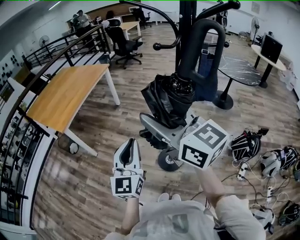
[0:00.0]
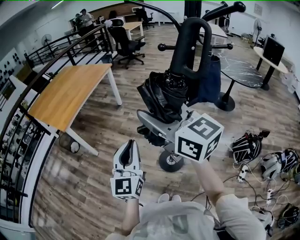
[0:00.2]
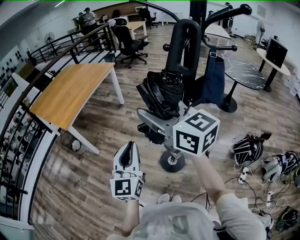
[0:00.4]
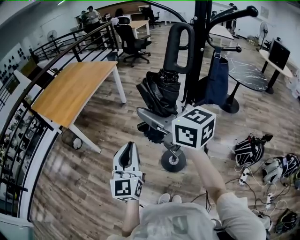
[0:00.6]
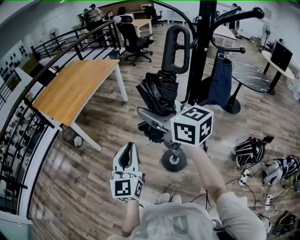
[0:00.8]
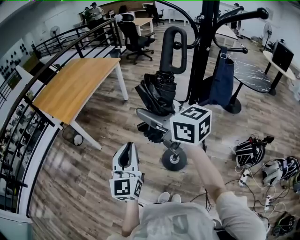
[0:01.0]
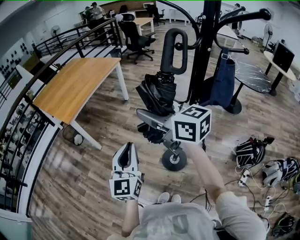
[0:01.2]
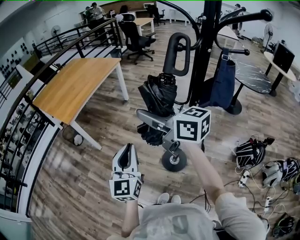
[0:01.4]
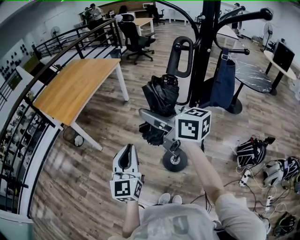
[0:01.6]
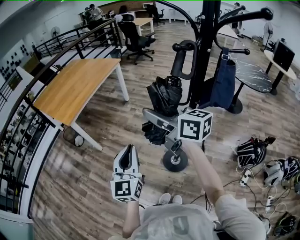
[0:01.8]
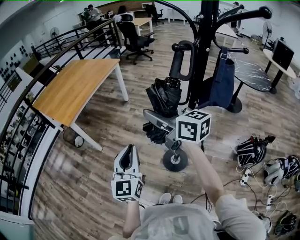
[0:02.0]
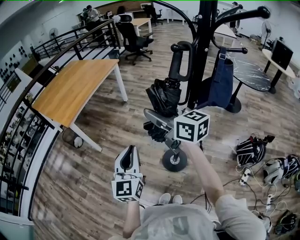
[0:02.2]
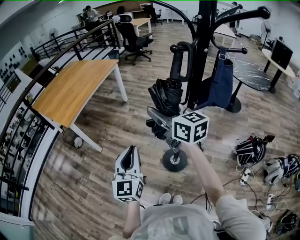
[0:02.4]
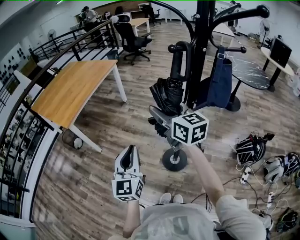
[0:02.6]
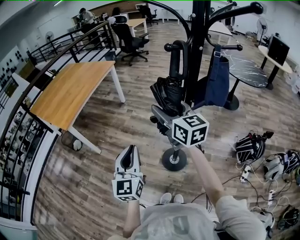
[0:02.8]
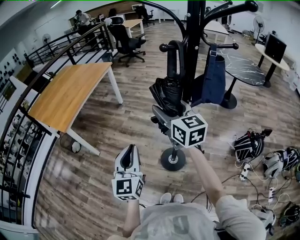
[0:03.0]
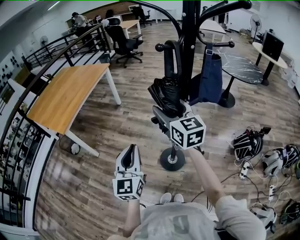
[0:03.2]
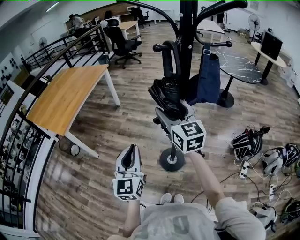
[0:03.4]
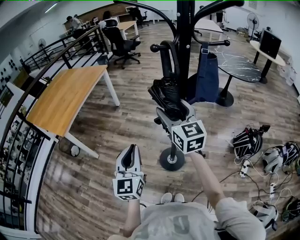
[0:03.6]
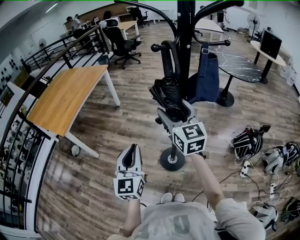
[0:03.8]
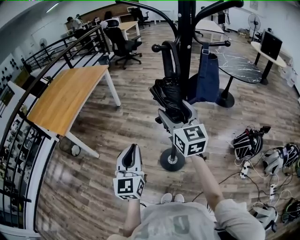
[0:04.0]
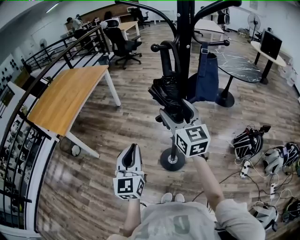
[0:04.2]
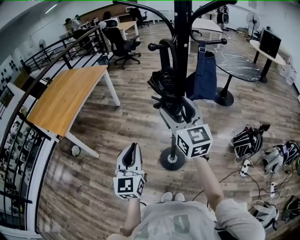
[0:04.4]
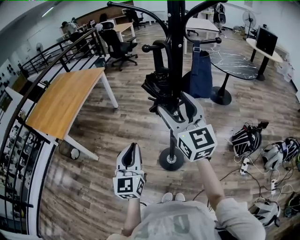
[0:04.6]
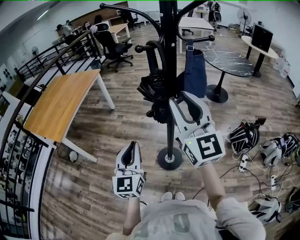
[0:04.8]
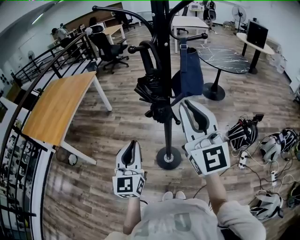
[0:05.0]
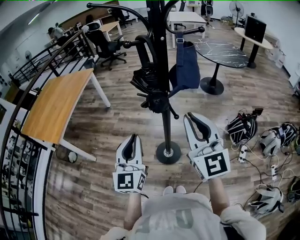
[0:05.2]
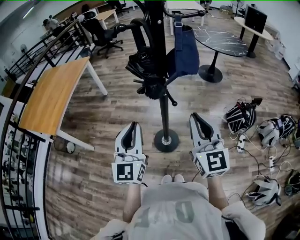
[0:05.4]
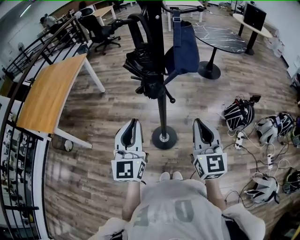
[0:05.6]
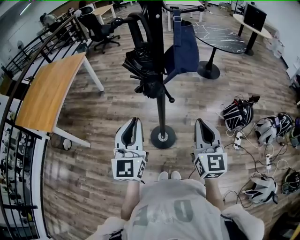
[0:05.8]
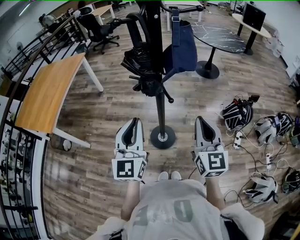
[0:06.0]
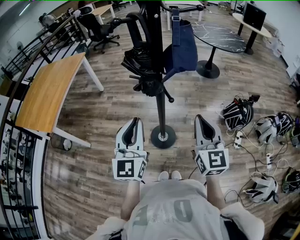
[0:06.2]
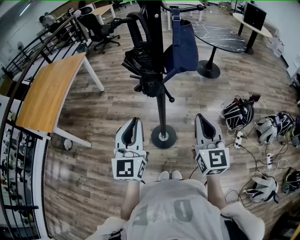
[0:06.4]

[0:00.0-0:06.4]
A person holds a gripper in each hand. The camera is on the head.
0:00.0 to 0:01.6: The left gripper ends up some 5 cm from where it was, while the right gripper travels forward and downward by roughly 10 cm, and turns by about 20 degrees.
0:01.6 to 0:03.2: The right gripper heads to the right, covering approximately 10 cm, and rotates roughly 40 degrees.
0:03.2 to 0:04.8: The right gripper heads upward, backward and to the right, covering approximately 15 cm, rotates roughly 30 degrees, and closes its fingers.
0:04.8 to 0:06.4: The left gripper moves to the right, some 5 cm; the right gripper travels downward and to the right by approximately 20 cm, turns by some 30 degrees, and closes its fingers.

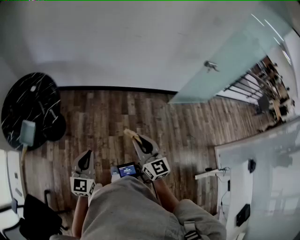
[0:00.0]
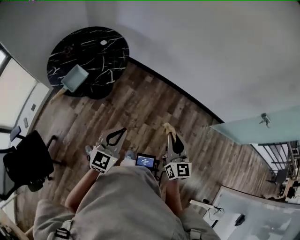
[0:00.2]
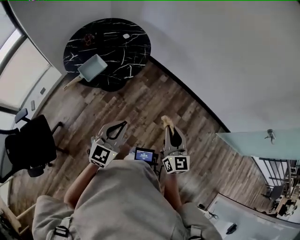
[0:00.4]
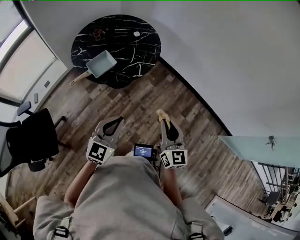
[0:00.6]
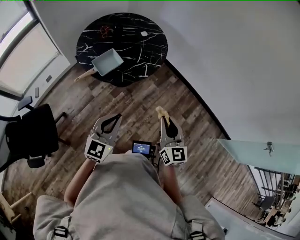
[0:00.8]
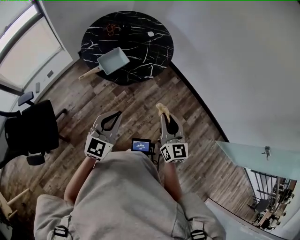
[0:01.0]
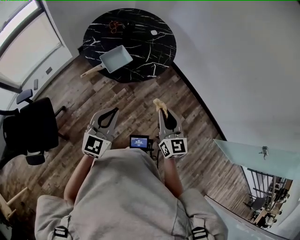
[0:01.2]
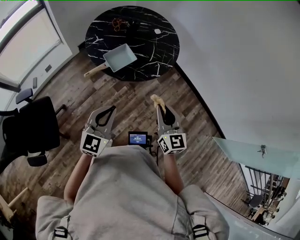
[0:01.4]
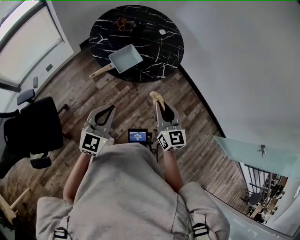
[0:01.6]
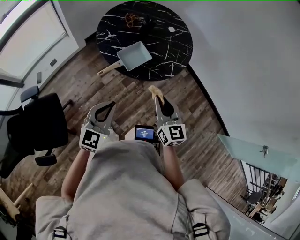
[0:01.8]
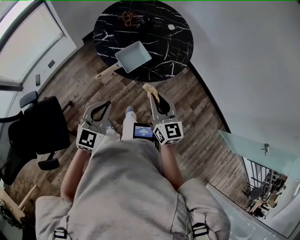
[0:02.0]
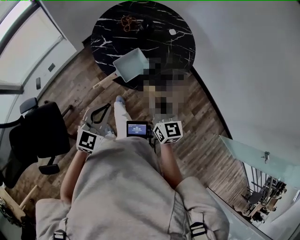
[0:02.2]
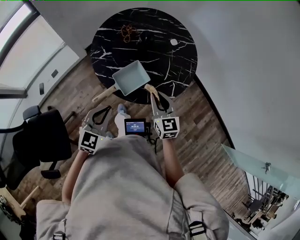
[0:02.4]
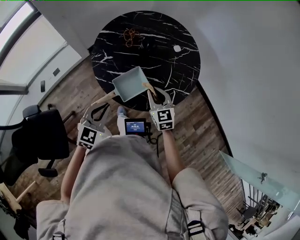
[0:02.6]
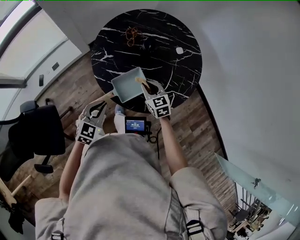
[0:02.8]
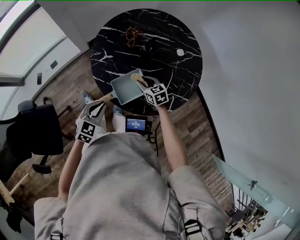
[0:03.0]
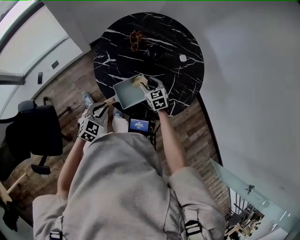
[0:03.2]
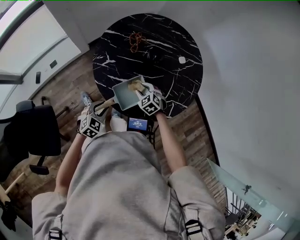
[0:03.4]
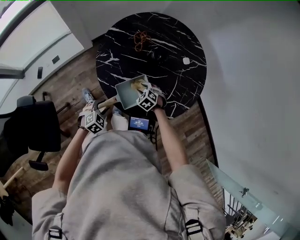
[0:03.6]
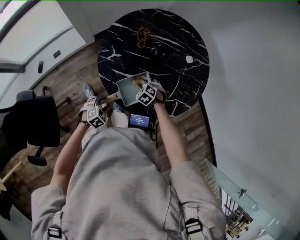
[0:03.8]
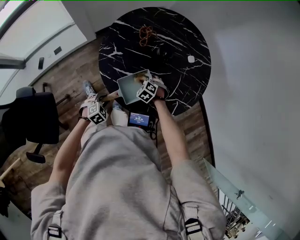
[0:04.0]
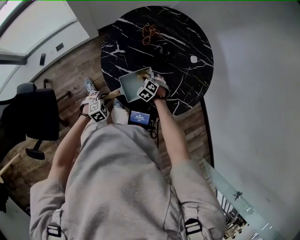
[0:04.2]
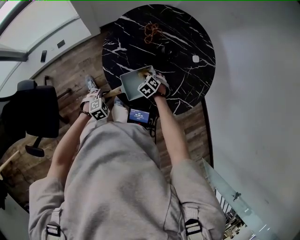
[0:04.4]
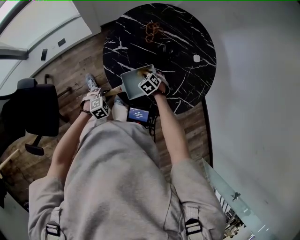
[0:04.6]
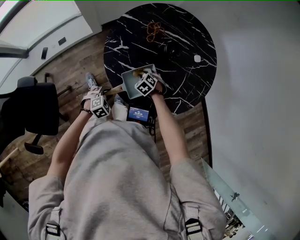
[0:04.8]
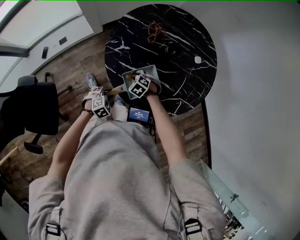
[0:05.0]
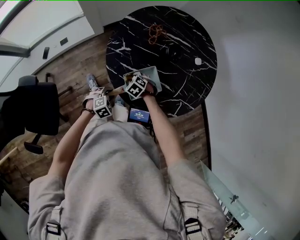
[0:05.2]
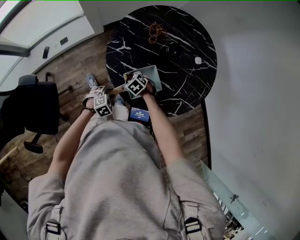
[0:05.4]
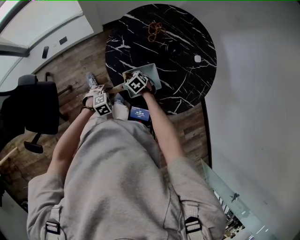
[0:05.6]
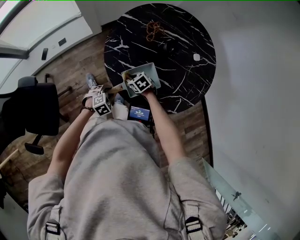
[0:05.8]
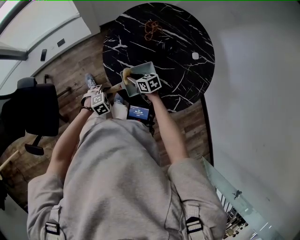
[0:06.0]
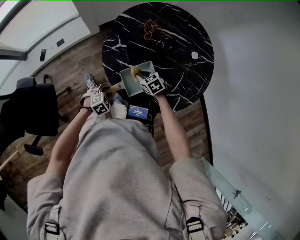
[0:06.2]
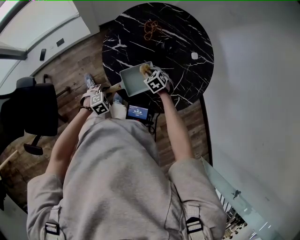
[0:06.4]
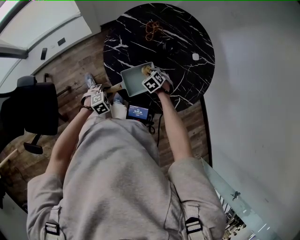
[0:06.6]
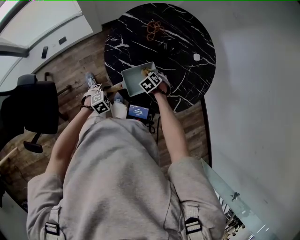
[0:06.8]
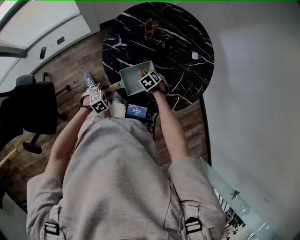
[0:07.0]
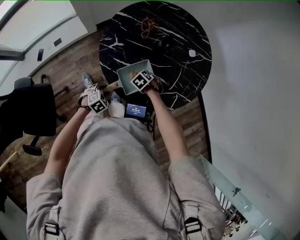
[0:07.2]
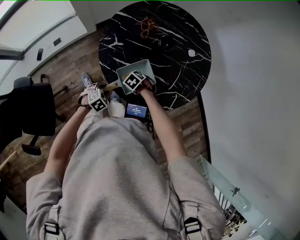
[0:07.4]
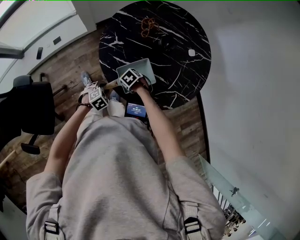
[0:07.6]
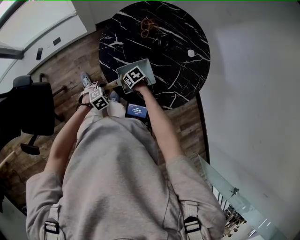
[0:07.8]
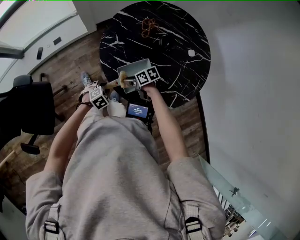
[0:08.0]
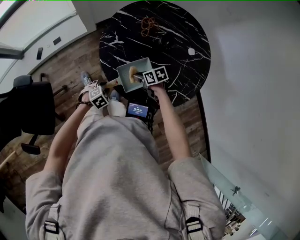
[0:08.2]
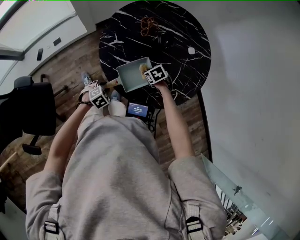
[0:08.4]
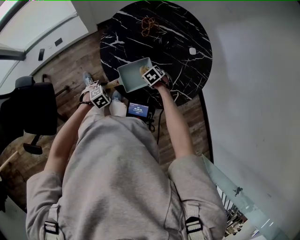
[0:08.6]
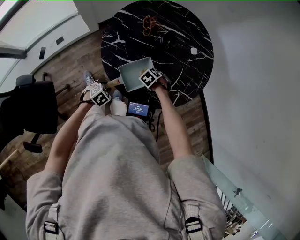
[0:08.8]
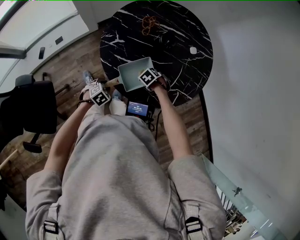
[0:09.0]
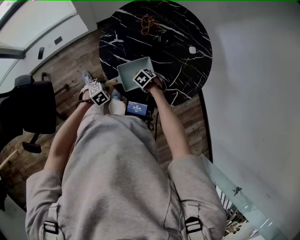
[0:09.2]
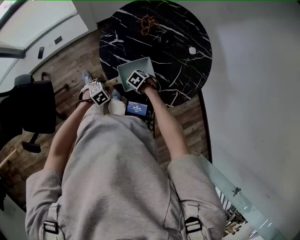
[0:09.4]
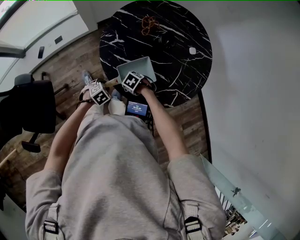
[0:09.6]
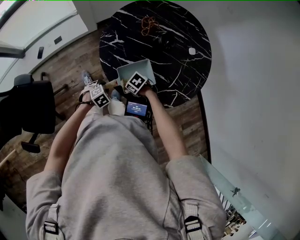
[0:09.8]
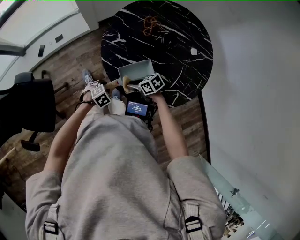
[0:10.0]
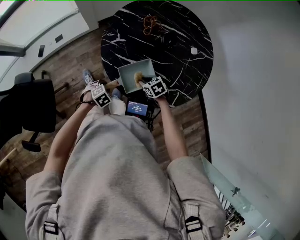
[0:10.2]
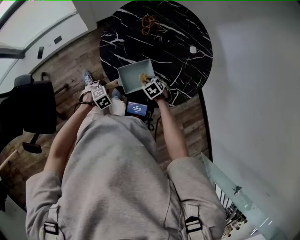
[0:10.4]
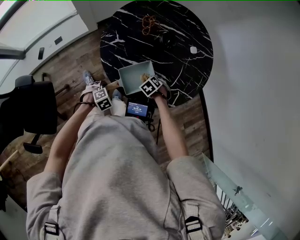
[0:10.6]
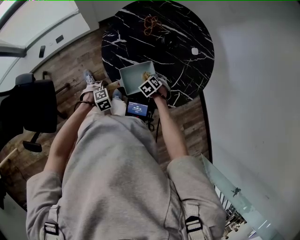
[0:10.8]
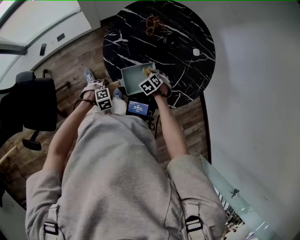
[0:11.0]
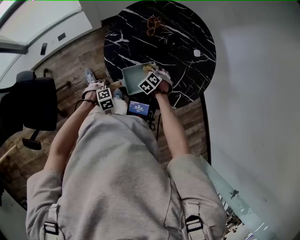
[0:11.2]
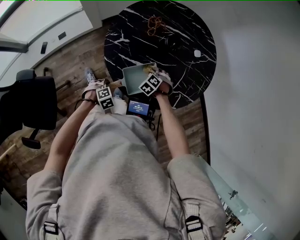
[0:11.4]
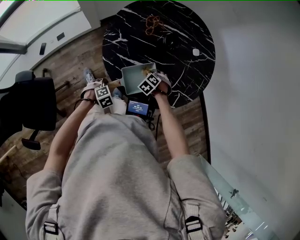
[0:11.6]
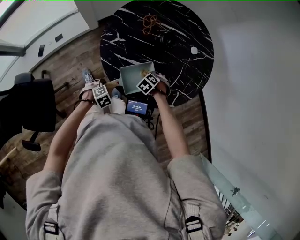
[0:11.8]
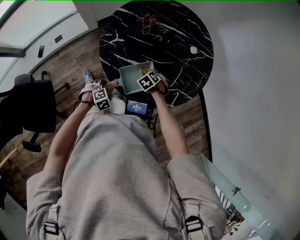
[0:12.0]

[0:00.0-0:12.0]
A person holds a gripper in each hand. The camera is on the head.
0:00.0 to 0:01.6: The two grippers travel together, to the left and forward, about 50 cm.
0:01.6 to 0:03.0: The right gripper is displaced forward and downward by about 50 cm, and rotates approximately 40 degrees. Meanwhile the left gripper is displaced forward and downward by some 30 cm, and swivels some 30 degrees.
0:03.0 to 0:04.4: The left gripper goes about 15 cm downward, changes its angle by approximately 30 degrees, and opens, while the right gripper moves downward, about 10 cm, swivels about 50 degrees, and opens, then closes once more.
0:04.4 to 0:06.0: The right gripper shifts by some 10 cm, and changes its angle by roughly 50 degrees.
0:06.0 to 0:07.6: The right gripper shifts roughly 5 cm downward, and tips its fingers downward by some 30 degrees.
0:07.6 to 0:09.0: The right gripper moves approximately 10 cm.

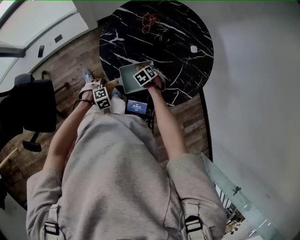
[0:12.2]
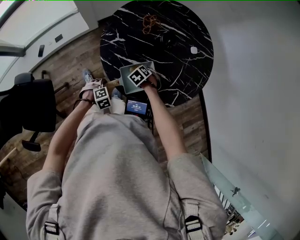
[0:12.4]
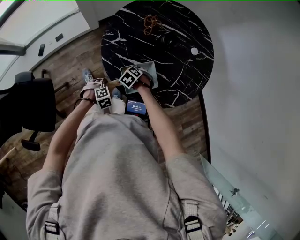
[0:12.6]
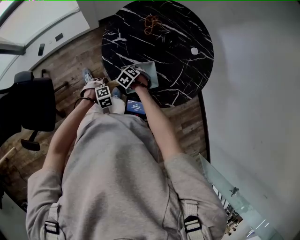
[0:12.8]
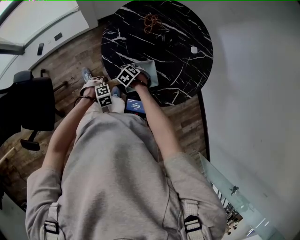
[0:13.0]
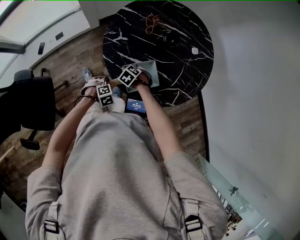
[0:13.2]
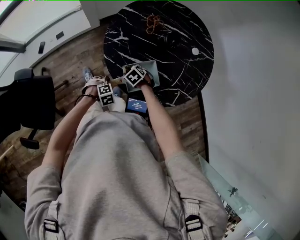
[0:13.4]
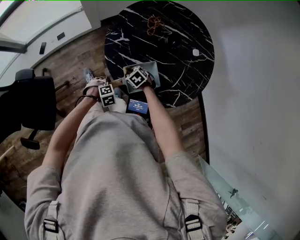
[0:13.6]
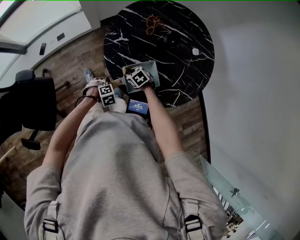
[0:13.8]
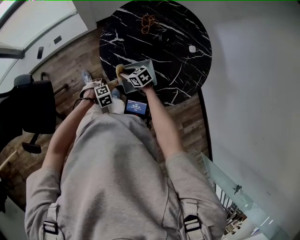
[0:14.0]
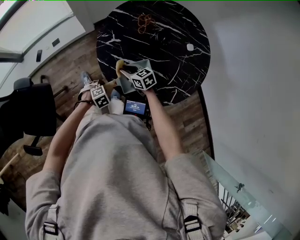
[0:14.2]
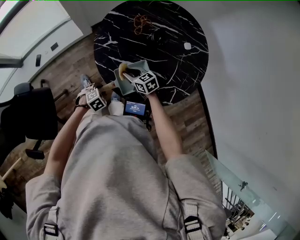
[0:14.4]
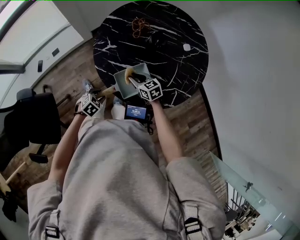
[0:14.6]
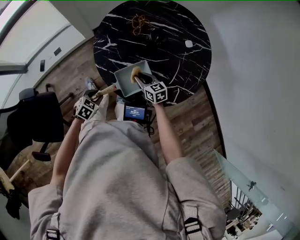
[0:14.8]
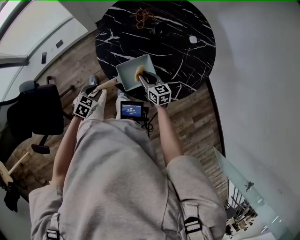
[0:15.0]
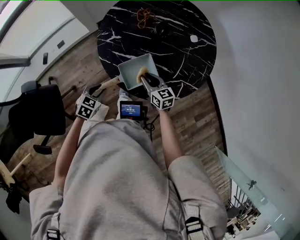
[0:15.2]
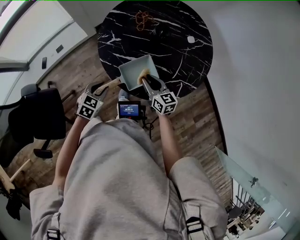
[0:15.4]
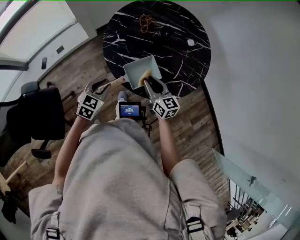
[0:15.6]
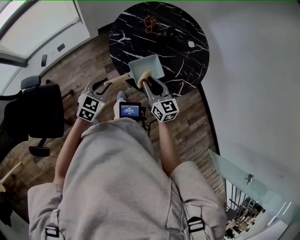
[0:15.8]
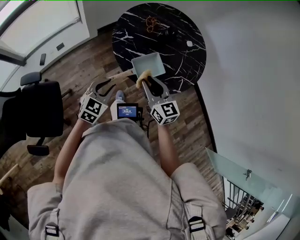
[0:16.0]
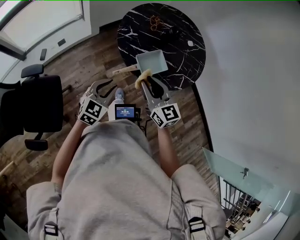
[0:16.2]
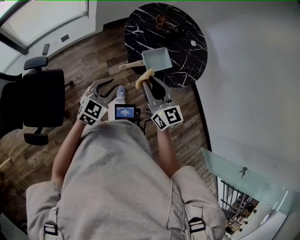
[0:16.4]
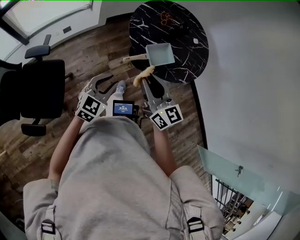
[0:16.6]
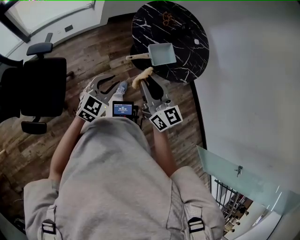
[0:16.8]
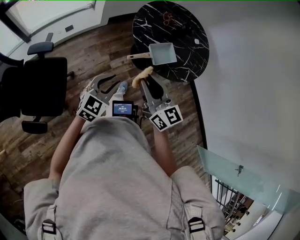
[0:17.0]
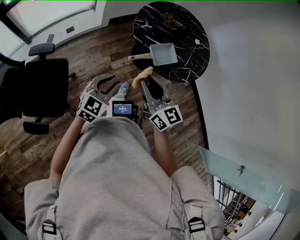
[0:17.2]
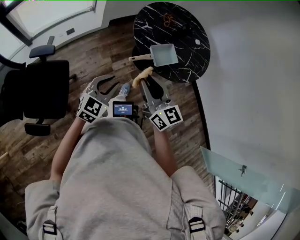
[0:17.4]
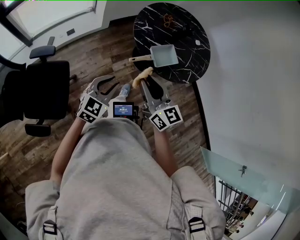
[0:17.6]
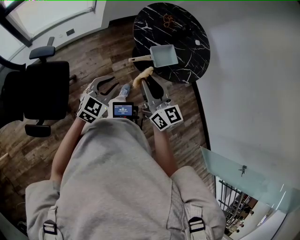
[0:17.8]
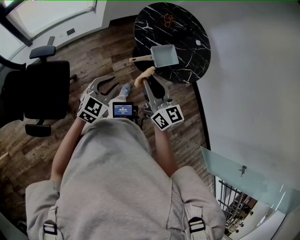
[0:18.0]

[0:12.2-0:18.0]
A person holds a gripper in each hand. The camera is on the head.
0:12.2 to 0:13.6: The right gripper moves roughly 10 cm, and rotates some 20 degrees.
0:13.6 to 0:15.0: The right gripper shifts by roughly 15 cm, and tips its fingers upward by about 40 degrees, while the left gripper moves upward, roughly 10 cm, and changes its angle by roughly 40 degrees.
0:15.0 to 0:16.6: The right gripper travels upward, backward and to the left by some 50 cm, and changes its angle by some 30 degrees. Meanwhile the left gripper shifts approximately 30 cm upward, backward and to the left, and tilts its fingers about 40 degrees upward.
0:16.6 to 0:18.0: The grippers move only a little.
